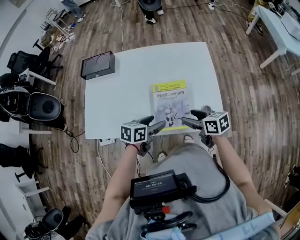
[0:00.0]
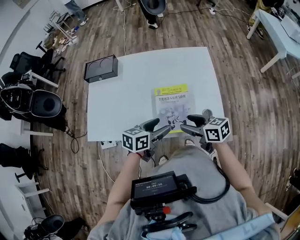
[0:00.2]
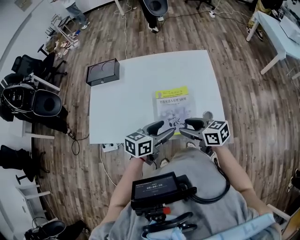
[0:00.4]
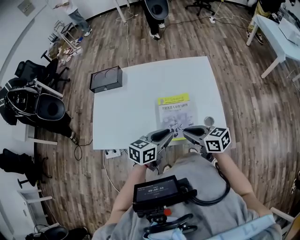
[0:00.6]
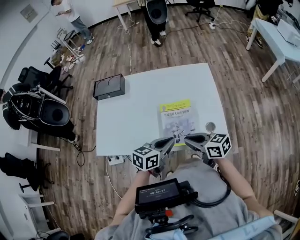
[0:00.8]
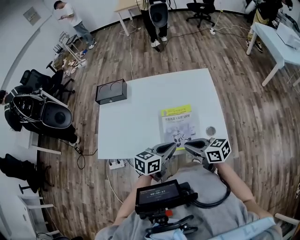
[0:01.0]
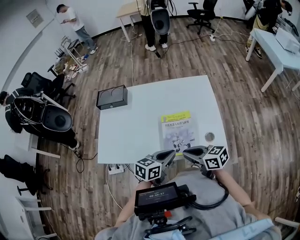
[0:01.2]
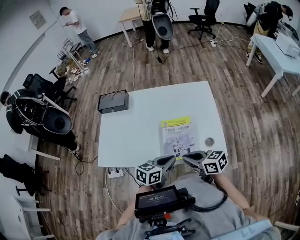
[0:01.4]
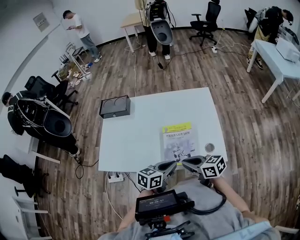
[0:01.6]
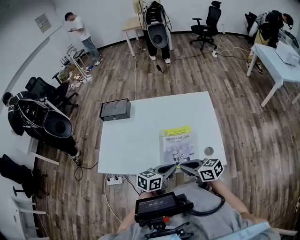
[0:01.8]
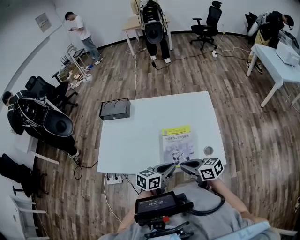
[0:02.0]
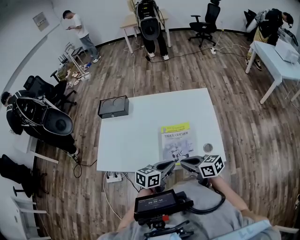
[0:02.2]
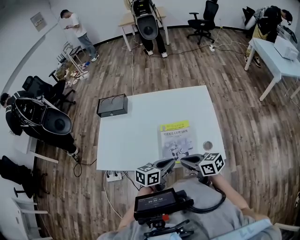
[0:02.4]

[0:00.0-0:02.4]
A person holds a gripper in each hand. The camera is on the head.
0:00.0 to 0:01.2: The right gripper shifts about 10 cm upward, backward and to the left, and closes up. The left gripper travels upward by some 5 cm, and closes.
0:01.2 to 0:02.4: The grippers move only a little.

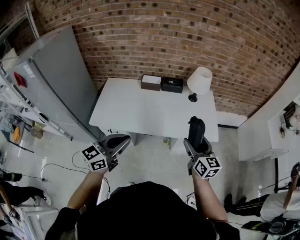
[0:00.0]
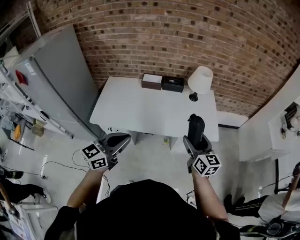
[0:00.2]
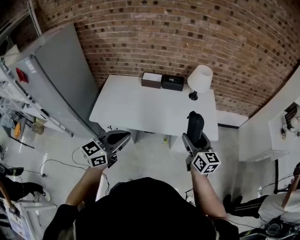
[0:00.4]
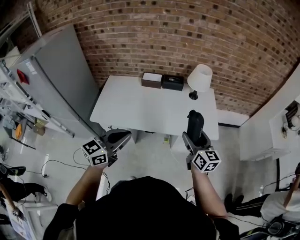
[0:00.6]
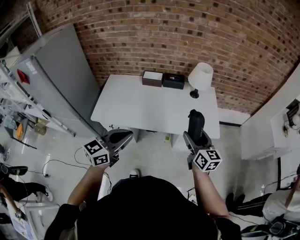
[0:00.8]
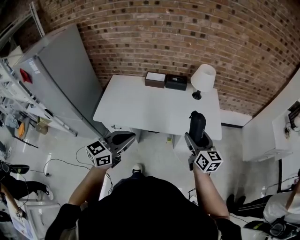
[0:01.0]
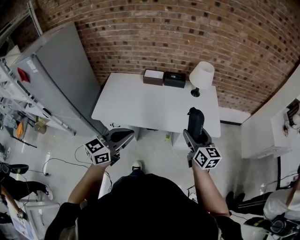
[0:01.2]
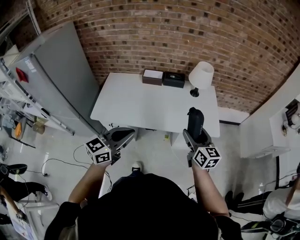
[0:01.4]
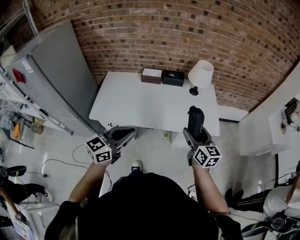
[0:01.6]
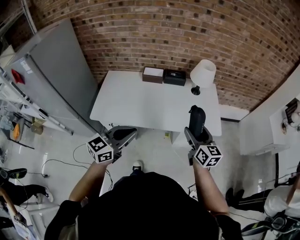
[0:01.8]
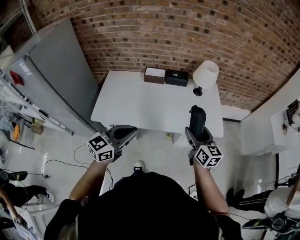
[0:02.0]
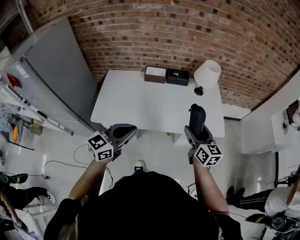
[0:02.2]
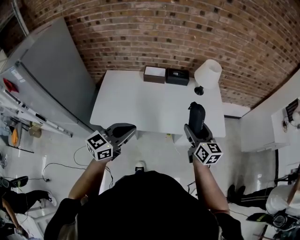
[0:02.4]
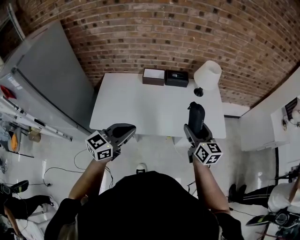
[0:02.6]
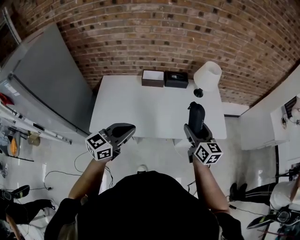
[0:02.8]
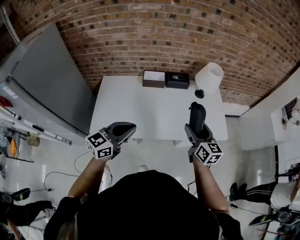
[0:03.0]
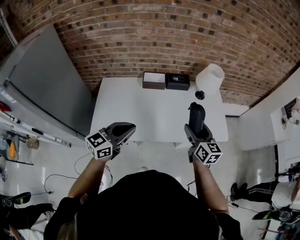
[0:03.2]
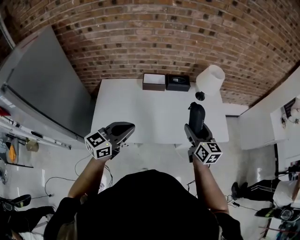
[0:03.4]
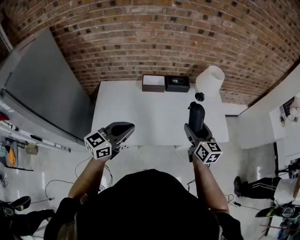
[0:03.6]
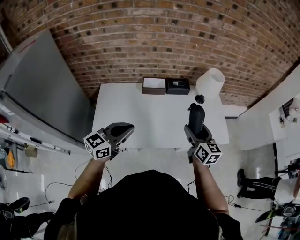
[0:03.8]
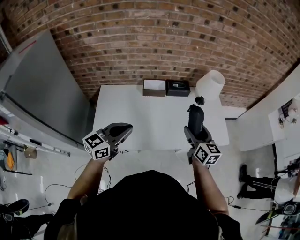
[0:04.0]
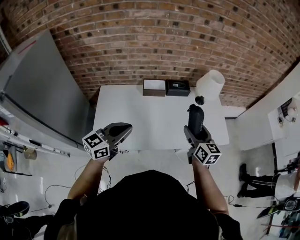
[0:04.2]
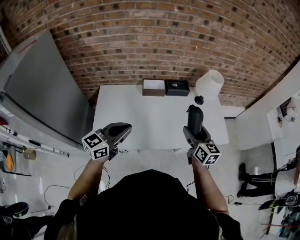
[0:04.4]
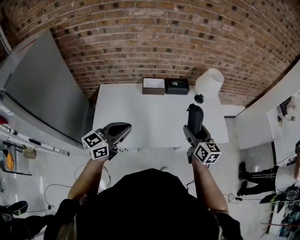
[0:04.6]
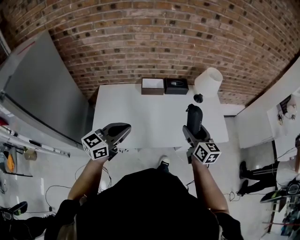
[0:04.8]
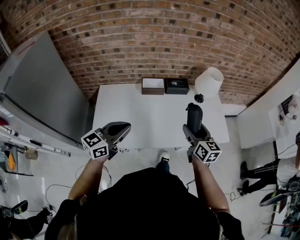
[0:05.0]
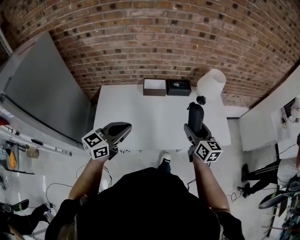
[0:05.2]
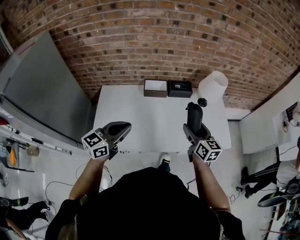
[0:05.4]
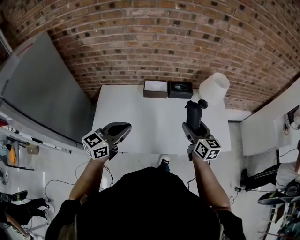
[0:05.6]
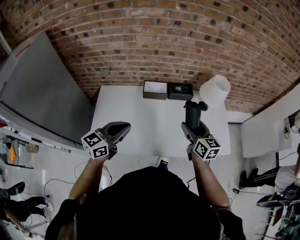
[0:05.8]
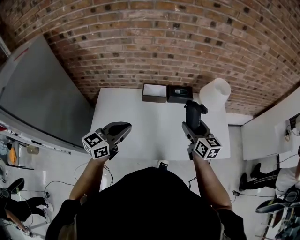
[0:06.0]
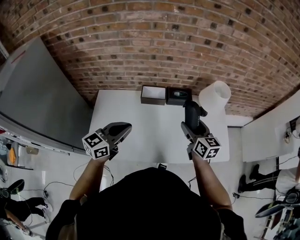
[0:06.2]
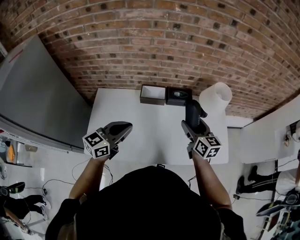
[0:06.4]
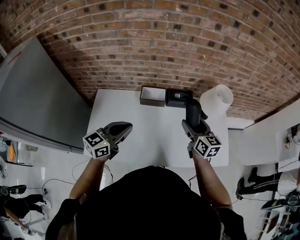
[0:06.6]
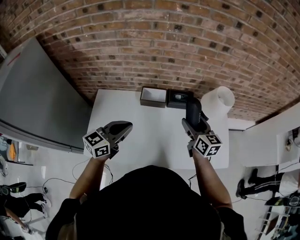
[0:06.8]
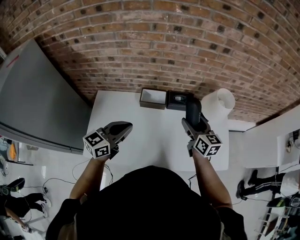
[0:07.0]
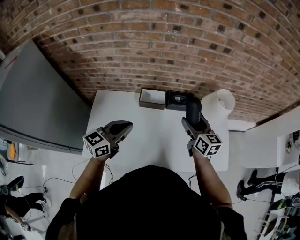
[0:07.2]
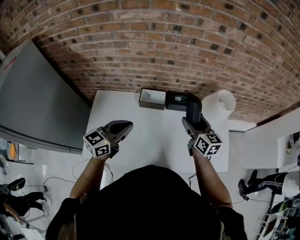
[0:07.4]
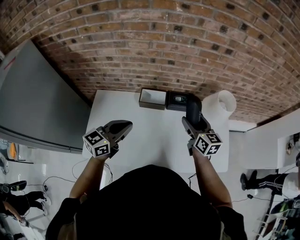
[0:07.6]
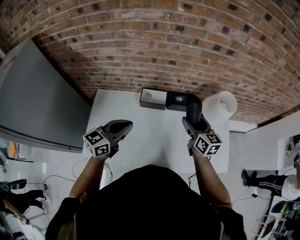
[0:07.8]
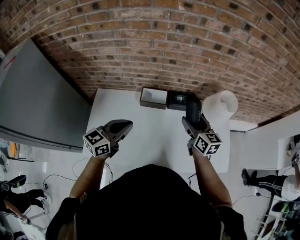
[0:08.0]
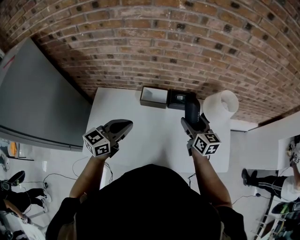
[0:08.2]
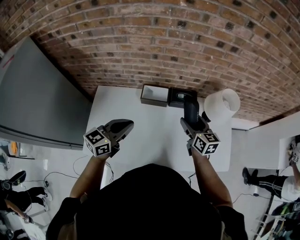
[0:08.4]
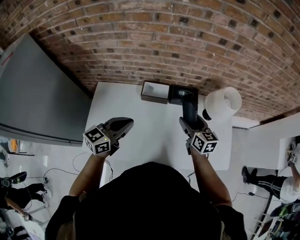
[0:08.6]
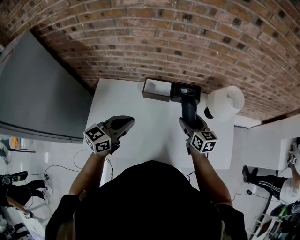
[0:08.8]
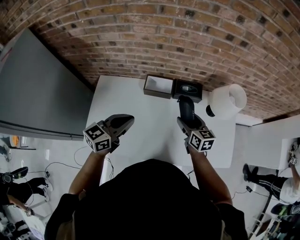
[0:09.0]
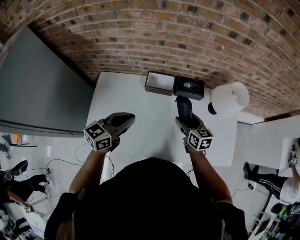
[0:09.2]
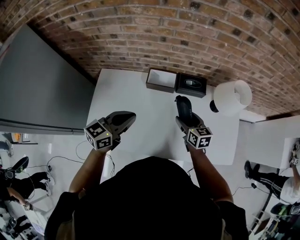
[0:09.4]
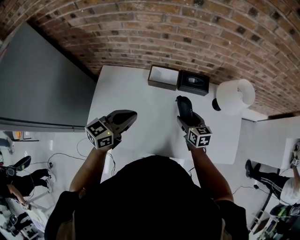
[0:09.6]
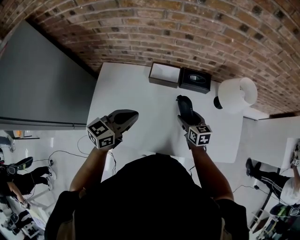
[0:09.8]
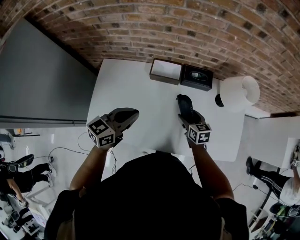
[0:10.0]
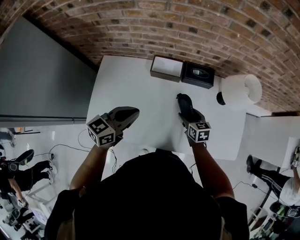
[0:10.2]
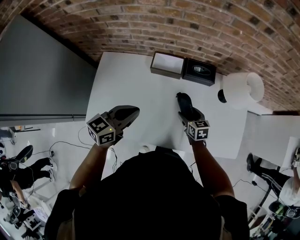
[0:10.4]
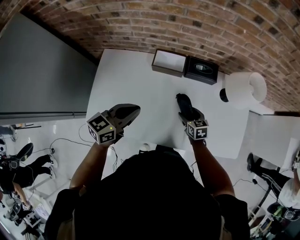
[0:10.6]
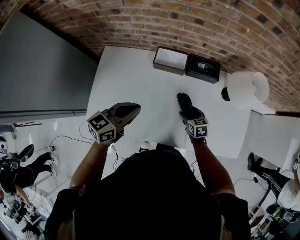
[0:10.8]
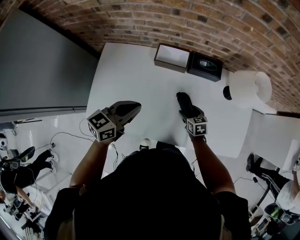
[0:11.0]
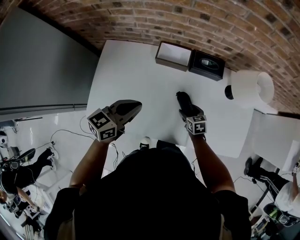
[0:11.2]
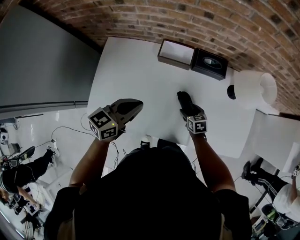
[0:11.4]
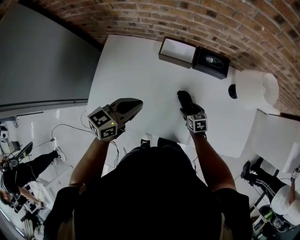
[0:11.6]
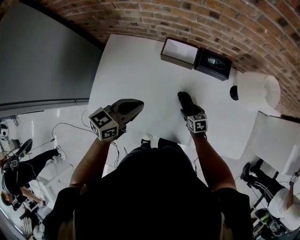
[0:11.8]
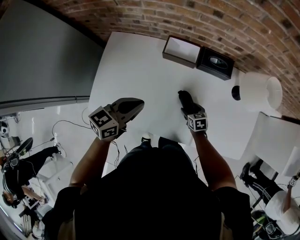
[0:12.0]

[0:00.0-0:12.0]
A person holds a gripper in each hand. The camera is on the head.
0:00.0 to 0:01.6: The grippers stay close to where they were, moving slightly.
0:01.6 to 0:03.0: The right gripper goes approximately 15 cm to the left and forward; the left gripper goes roughly 20 cm forward and to the left.
0:03.0 to 0:04.4: Both grippers move to the left, some 10 cm.
0:04.4 to 0:06.0: Both grippers travel together forward, approximately 10 cm.
0:06.0 to 0:07.6: Both grippers travel together forward, about 15 cm.
0:07.6 to 0:09.0: The right gripper is displaced downward by approximately 10 cm.
0:09.0 to 0:10.4: The left gripper shifts about 5 cm downward. The right gripper travels downward by about 15 cm.
0:10.4 to 0:12.0: The right gripper heads downward, covering about 15 cm.

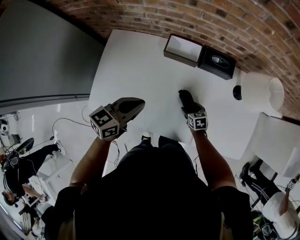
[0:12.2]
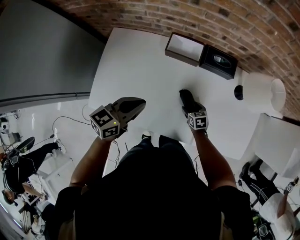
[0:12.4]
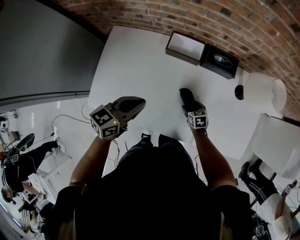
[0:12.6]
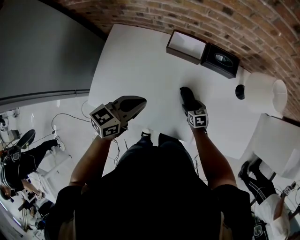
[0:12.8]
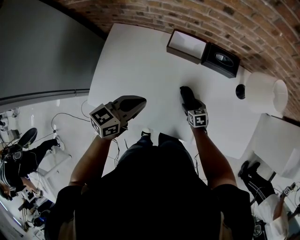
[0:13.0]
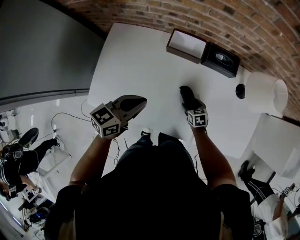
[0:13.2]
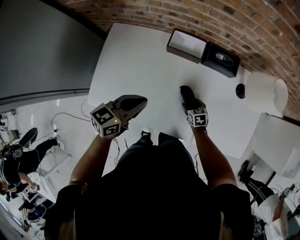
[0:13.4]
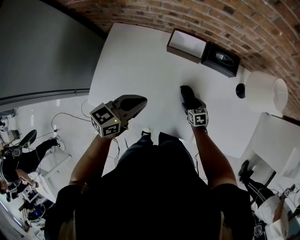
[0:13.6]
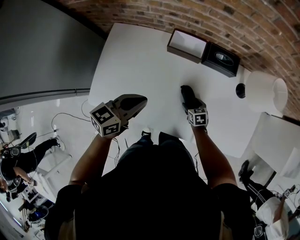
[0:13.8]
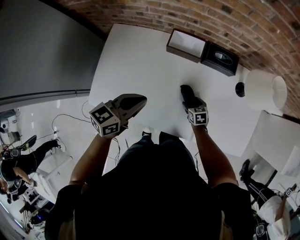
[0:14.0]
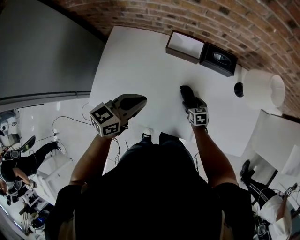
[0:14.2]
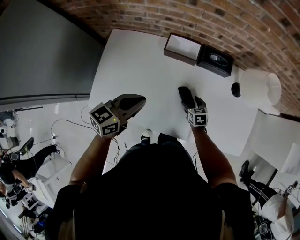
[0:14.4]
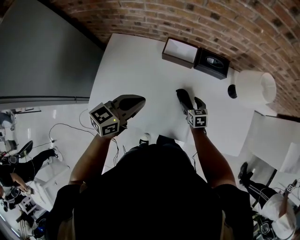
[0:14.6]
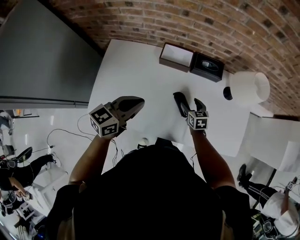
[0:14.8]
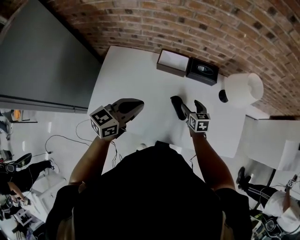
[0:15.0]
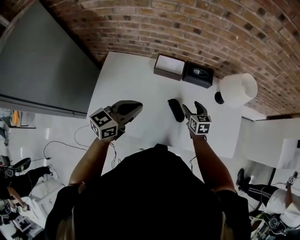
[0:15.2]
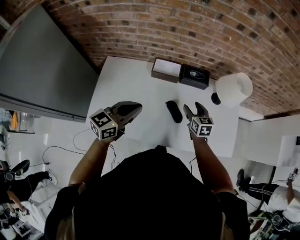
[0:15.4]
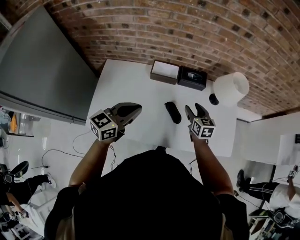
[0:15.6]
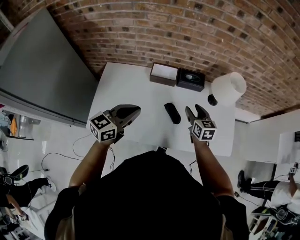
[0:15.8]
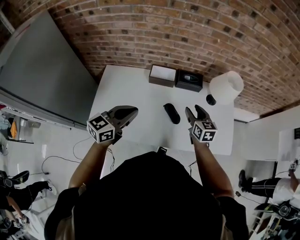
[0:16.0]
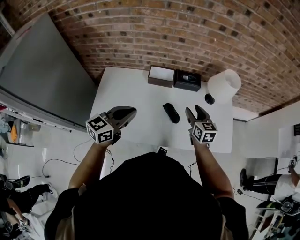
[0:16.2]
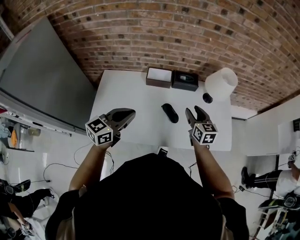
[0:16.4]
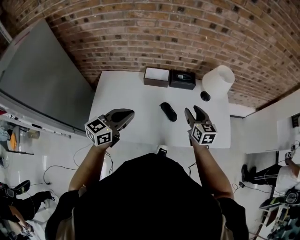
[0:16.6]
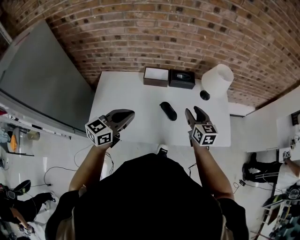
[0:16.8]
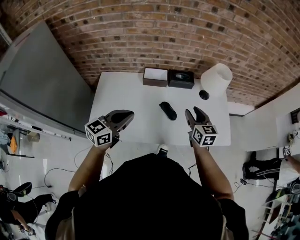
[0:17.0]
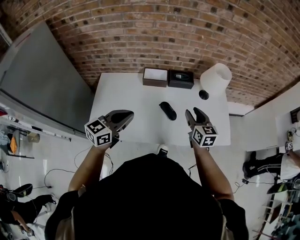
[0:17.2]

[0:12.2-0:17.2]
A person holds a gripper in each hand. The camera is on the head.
0:12.2 to 0:13.8: The grippers make only small movements.
0:13.8 to 0:15.6: The left gripper goes some 15 cm upward, while the right gripper heads upward, covering about 30 cm, and rotates some 30 degrees.
0:15.6 to 0:17.2: The left gripper heads backward, covering roughly 10 cm. Meanwhile the right gripper heads backward and upward, covering about 15 cm.

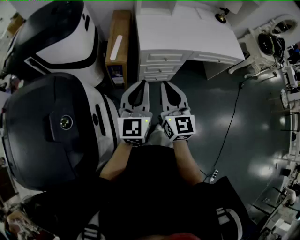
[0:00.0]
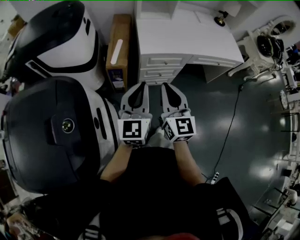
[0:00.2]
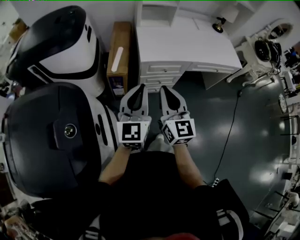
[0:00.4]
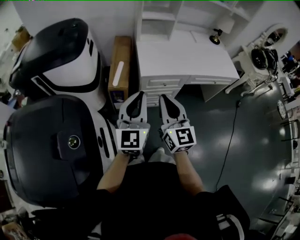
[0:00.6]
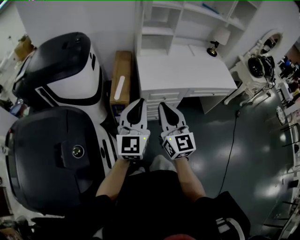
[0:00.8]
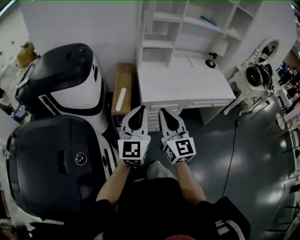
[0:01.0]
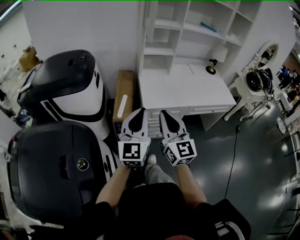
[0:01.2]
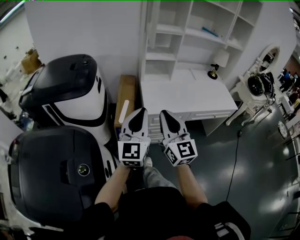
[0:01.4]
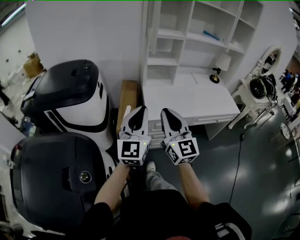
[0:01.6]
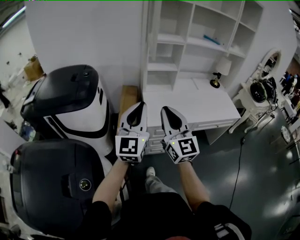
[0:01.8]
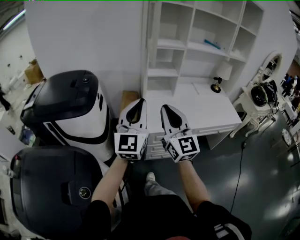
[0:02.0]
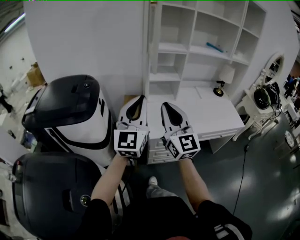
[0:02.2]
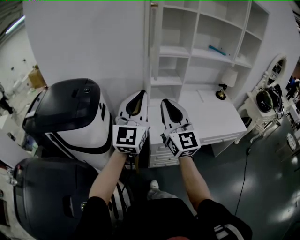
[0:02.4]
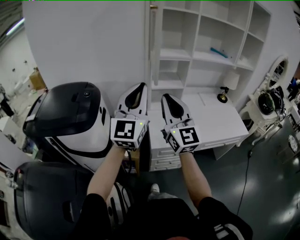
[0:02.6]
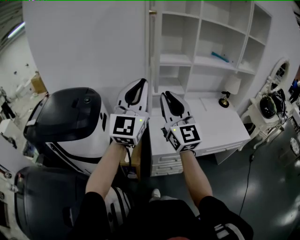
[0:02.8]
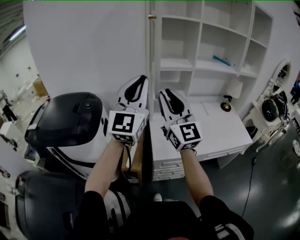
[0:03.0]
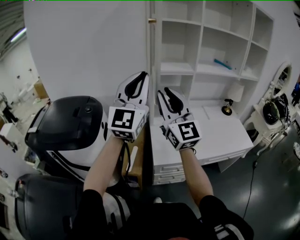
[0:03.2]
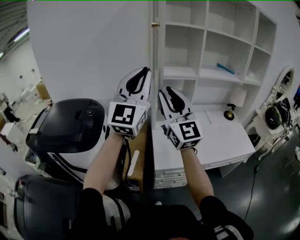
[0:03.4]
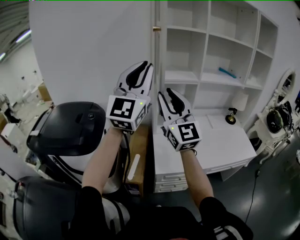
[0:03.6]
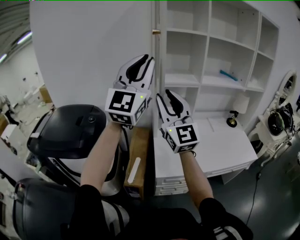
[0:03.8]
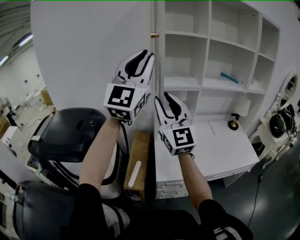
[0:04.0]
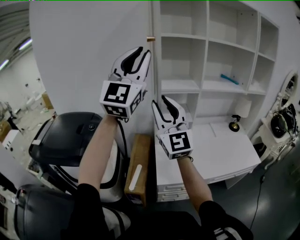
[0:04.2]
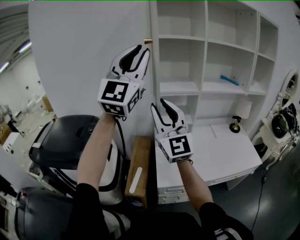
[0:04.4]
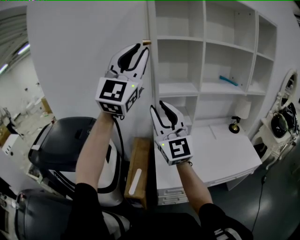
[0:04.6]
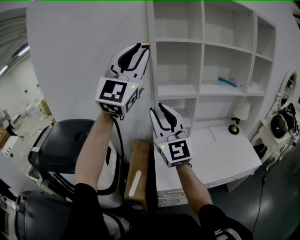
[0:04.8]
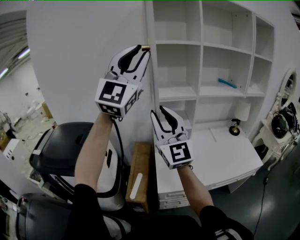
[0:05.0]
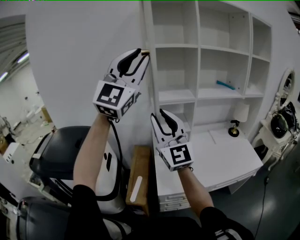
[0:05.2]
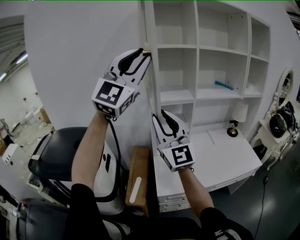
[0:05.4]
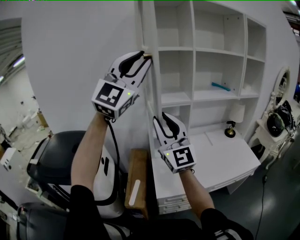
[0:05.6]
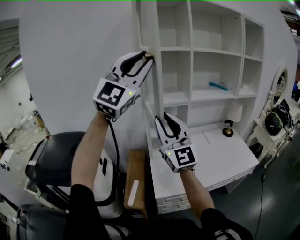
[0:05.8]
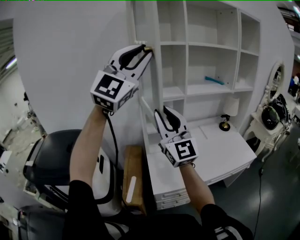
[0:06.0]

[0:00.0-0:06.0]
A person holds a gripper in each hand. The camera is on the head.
0:00.0 to 0:01.6: Both grippers move upward and forward, approximately 15 cm.
0:01.6 to 0:03.0: Both grippers travel together forward and upward, approximately 30 cm.
0:03.0 to 0:04.4: The right gripper travels forward by some 5 cm. The left gripper travels upward and forward by approximately 20 cm.
0:04.4 to 0:06.0: Both grippers move to the right, approximately 5 cm.
